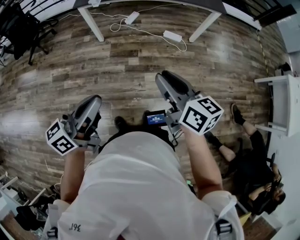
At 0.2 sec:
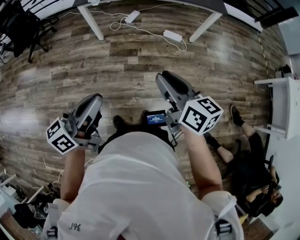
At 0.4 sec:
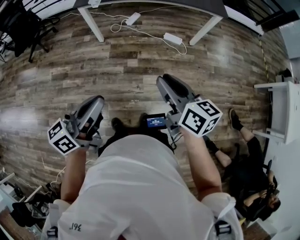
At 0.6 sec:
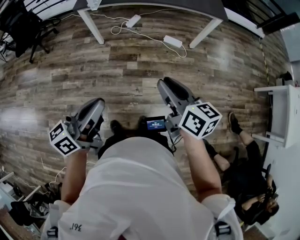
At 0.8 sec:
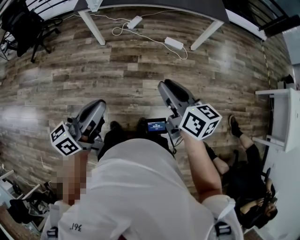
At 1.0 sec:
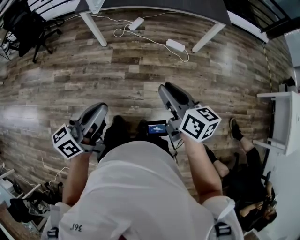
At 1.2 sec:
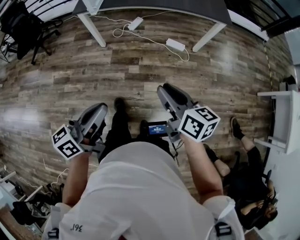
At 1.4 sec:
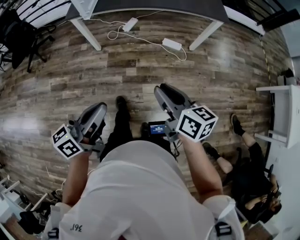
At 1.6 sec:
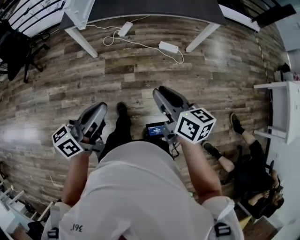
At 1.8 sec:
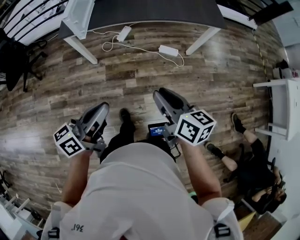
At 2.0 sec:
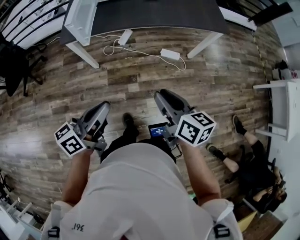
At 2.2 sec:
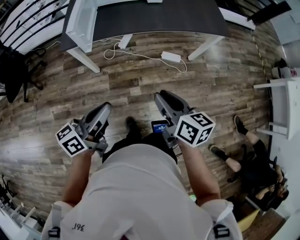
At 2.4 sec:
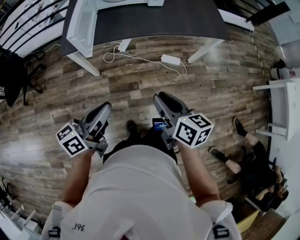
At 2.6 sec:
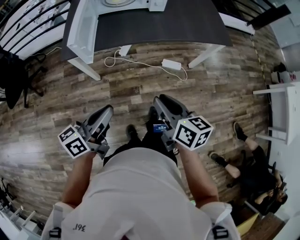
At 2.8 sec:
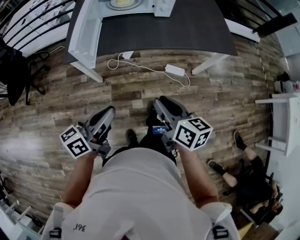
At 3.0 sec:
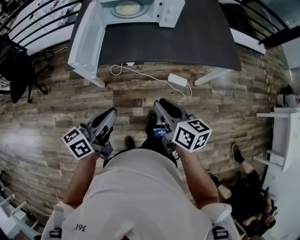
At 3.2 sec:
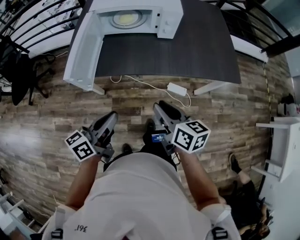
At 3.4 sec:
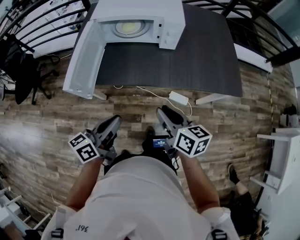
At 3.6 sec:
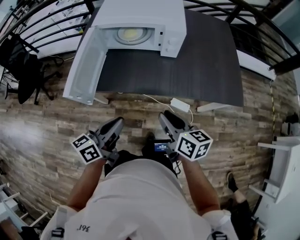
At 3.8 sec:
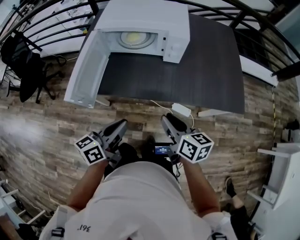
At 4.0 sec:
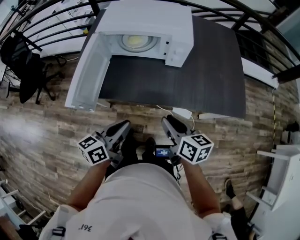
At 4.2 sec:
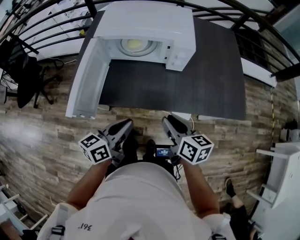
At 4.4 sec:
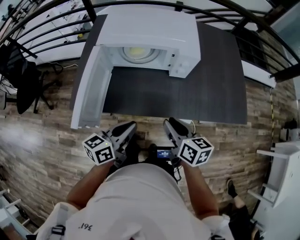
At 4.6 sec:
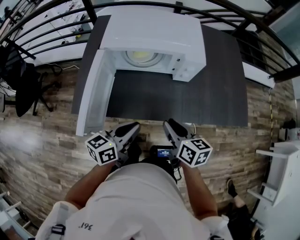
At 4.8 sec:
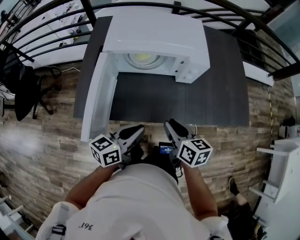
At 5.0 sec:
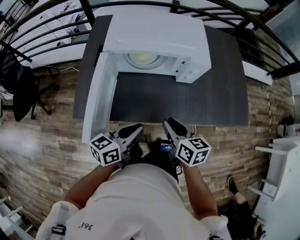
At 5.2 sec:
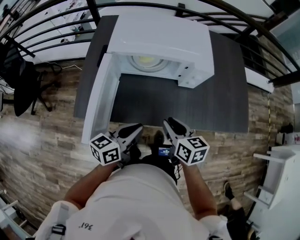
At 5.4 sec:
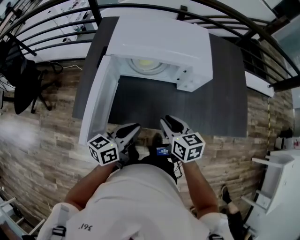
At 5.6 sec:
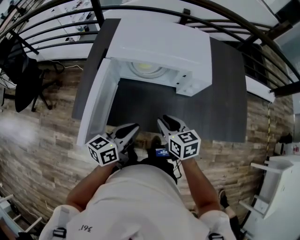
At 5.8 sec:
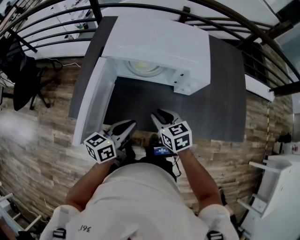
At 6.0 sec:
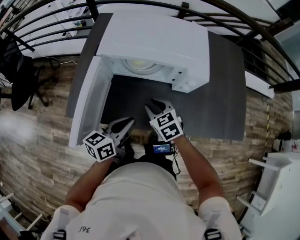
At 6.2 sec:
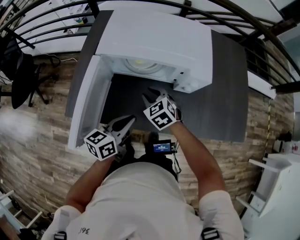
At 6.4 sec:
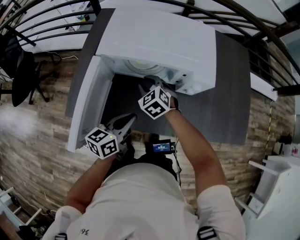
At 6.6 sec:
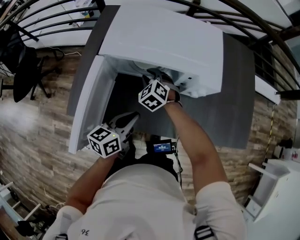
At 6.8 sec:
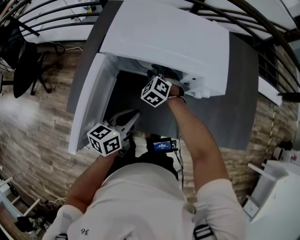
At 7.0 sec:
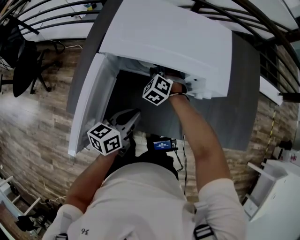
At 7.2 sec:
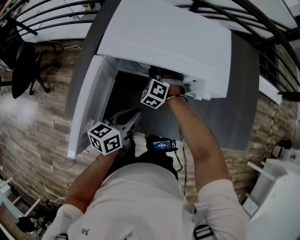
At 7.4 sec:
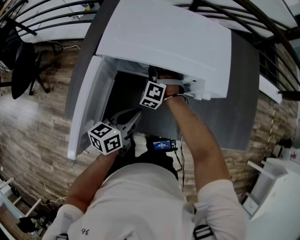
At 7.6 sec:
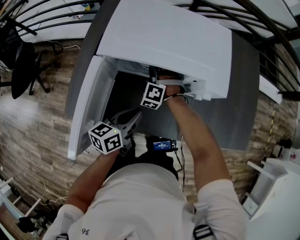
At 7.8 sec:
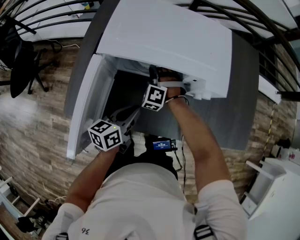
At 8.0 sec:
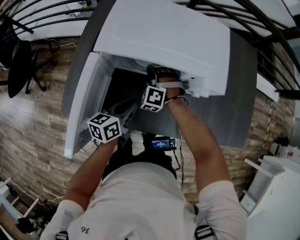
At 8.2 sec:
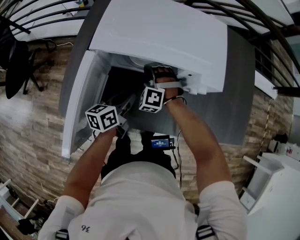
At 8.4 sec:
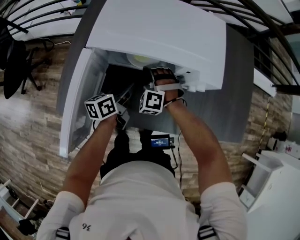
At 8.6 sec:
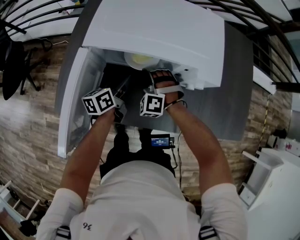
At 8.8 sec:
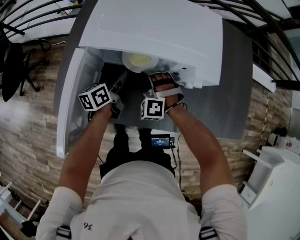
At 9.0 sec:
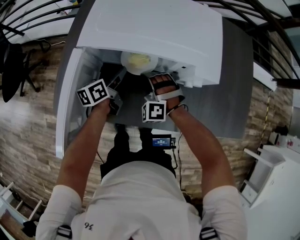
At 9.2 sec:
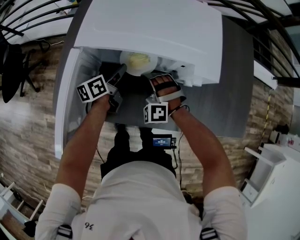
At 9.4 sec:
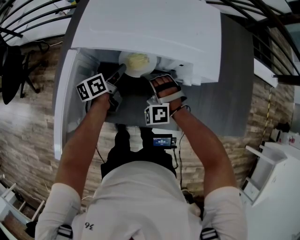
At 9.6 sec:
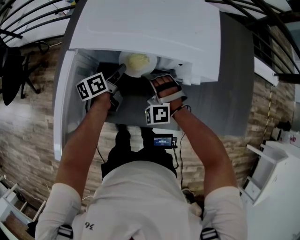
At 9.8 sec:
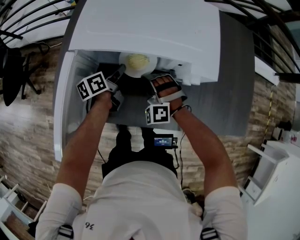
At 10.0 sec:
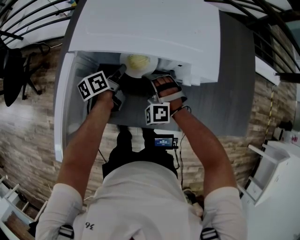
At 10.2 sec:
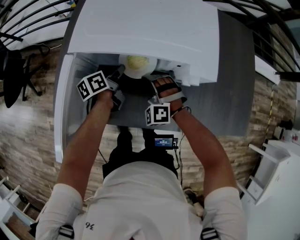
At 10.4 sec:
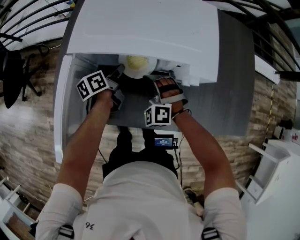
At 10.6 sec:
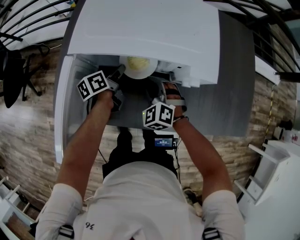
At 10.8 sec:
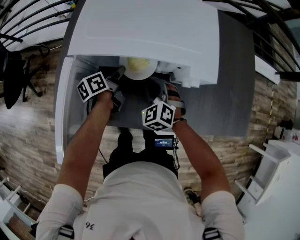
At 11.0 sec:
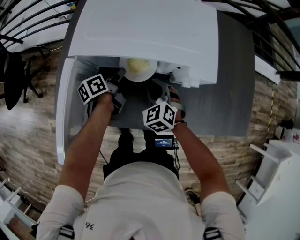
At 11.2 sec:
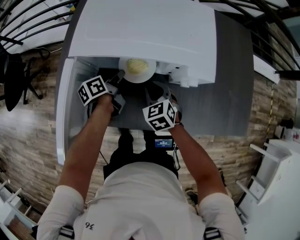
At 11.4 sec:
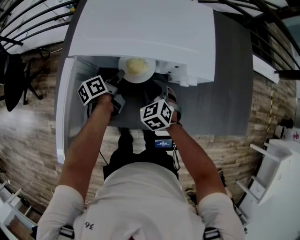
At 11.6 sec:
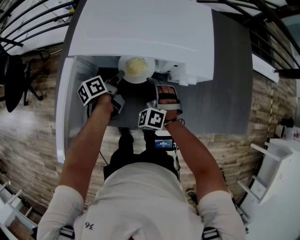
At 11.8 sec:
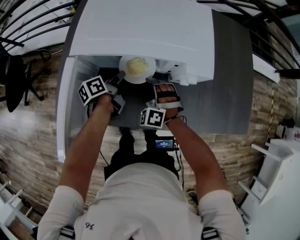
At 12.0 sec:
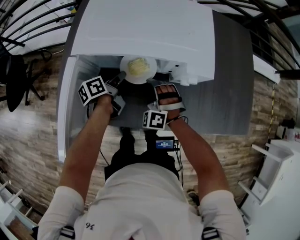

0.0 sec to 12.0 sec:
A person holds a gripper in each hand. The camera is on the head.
0.0 sec to 1.6 sec: Both grippers travel together forward, about 15 cm.
1.6 sec to 3.0 sec: Both grippers move forward, approximately 30 cm.
3.0 sec to 4.4 sec: Both grippers travel together forward, roughly 25 cm.
4.4 sec to 6.0 sec: The right gripper heads forward, to the left and downward, covering some 20 cm, and rolls counterclockwise, seen from behind, by some 40 degrees; the left gripper heads forward, covering approximately 10 cm.
6.0 sec to 7.6 sec: The left gripper is displaced forward by about 10 cm. Meanwhile the right gripper travels forward and to the left by some 20 cm, and twists some 60 degrees counterclockwise, seen from behind.
7.6 sec to 9.0 sec: The right gripper is displaced backward by roughly 10 cm. The left gripper is displaced forward, downward and to the left by roughly 15 cm, and opens its fingers.
9.0 sec to 10.4 sec: The left gripper closes up.
10.4 sec to 12.0 sec: The right gripper opens, then closes again.

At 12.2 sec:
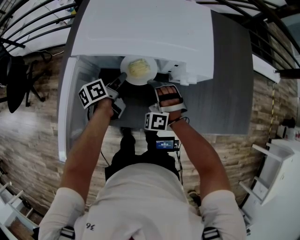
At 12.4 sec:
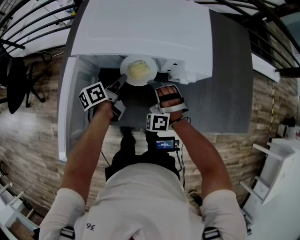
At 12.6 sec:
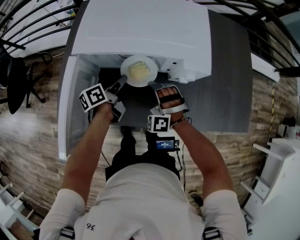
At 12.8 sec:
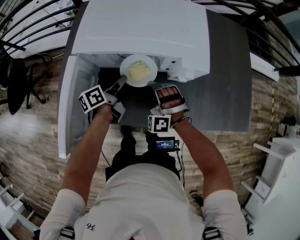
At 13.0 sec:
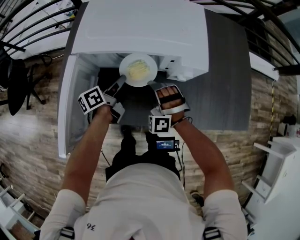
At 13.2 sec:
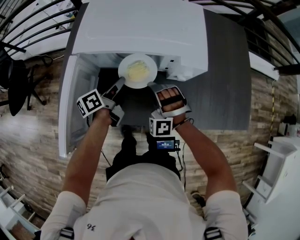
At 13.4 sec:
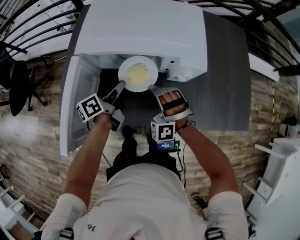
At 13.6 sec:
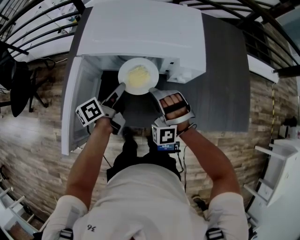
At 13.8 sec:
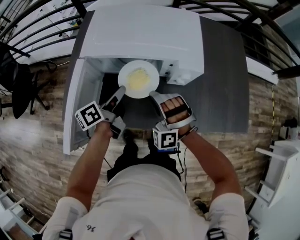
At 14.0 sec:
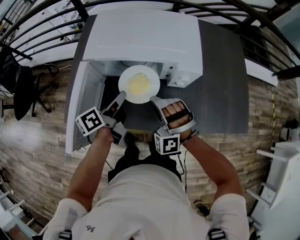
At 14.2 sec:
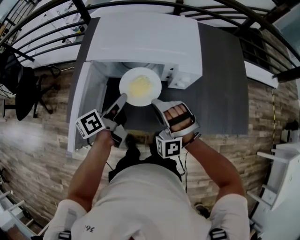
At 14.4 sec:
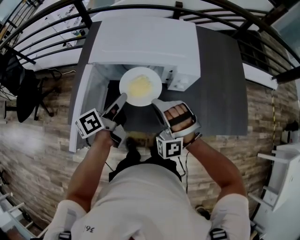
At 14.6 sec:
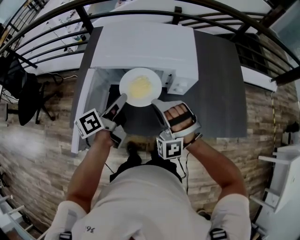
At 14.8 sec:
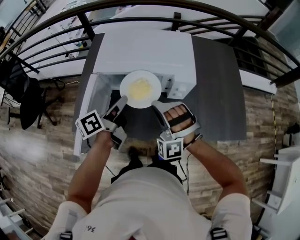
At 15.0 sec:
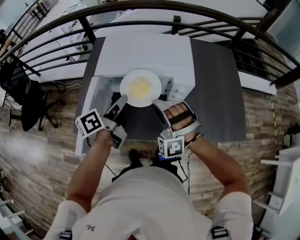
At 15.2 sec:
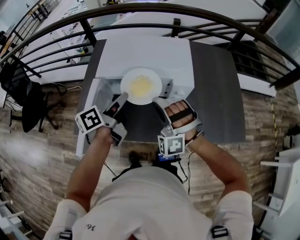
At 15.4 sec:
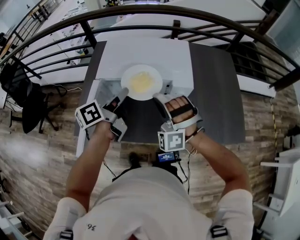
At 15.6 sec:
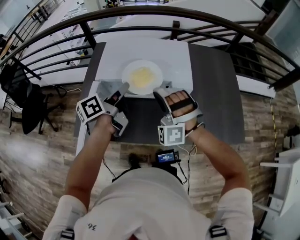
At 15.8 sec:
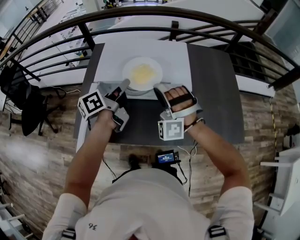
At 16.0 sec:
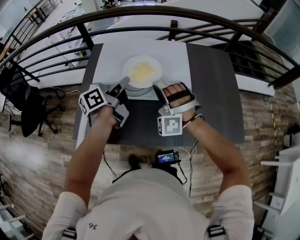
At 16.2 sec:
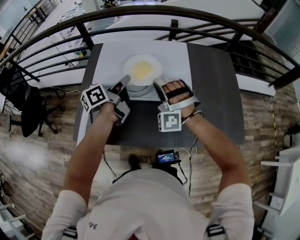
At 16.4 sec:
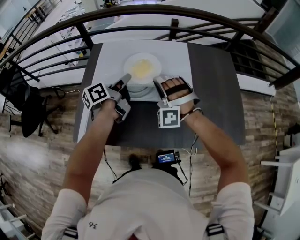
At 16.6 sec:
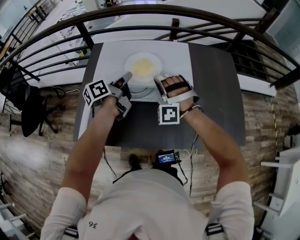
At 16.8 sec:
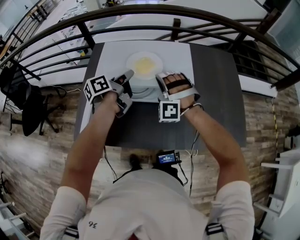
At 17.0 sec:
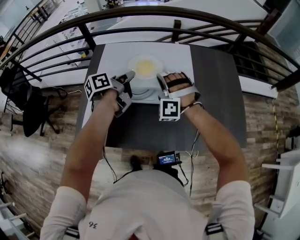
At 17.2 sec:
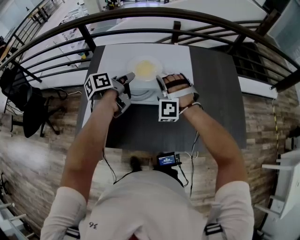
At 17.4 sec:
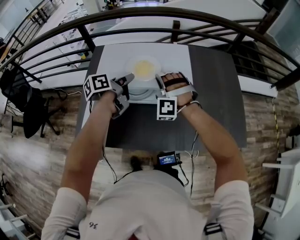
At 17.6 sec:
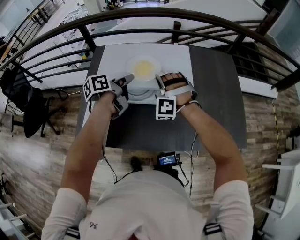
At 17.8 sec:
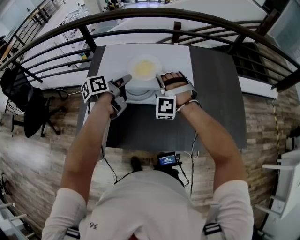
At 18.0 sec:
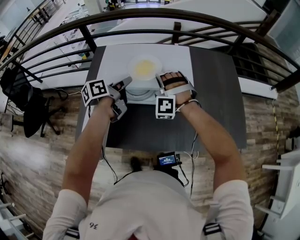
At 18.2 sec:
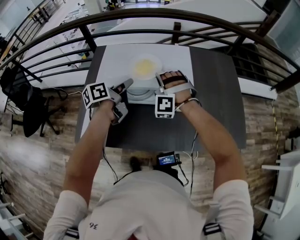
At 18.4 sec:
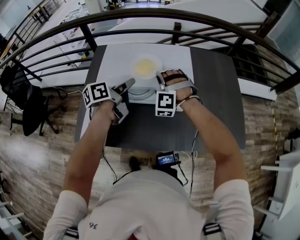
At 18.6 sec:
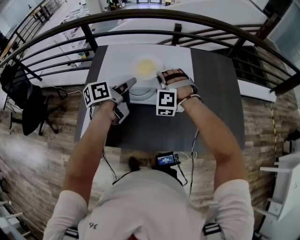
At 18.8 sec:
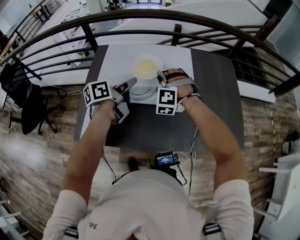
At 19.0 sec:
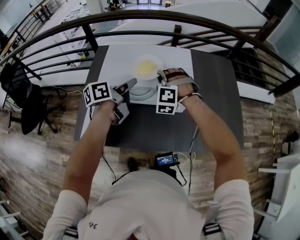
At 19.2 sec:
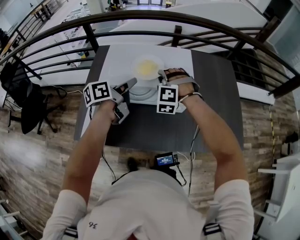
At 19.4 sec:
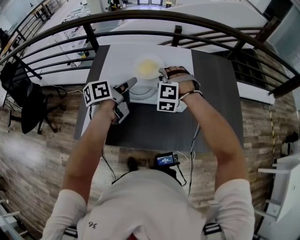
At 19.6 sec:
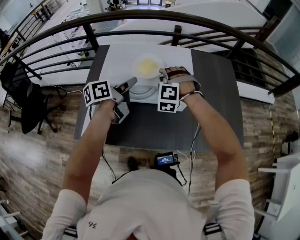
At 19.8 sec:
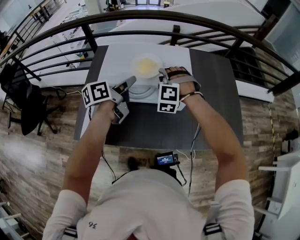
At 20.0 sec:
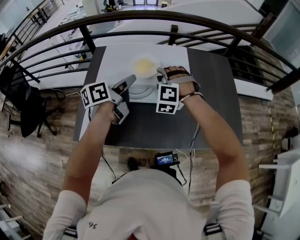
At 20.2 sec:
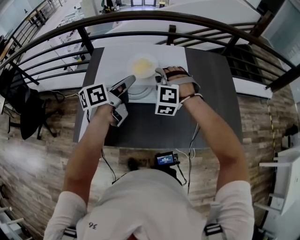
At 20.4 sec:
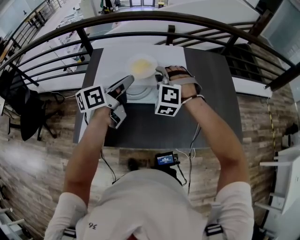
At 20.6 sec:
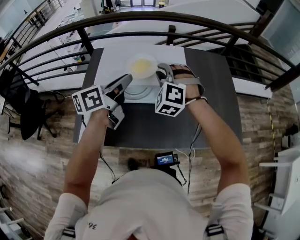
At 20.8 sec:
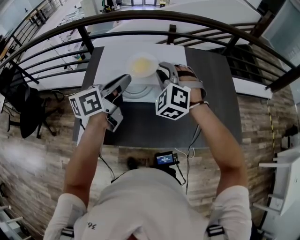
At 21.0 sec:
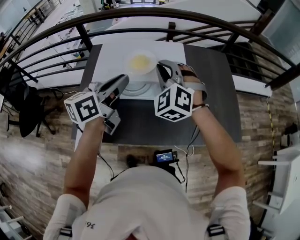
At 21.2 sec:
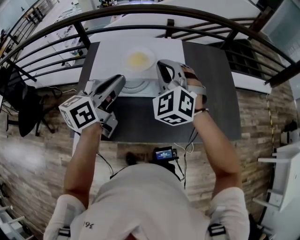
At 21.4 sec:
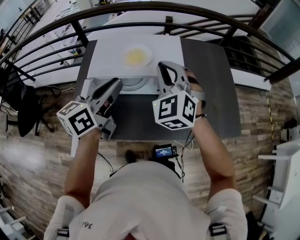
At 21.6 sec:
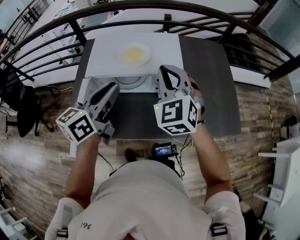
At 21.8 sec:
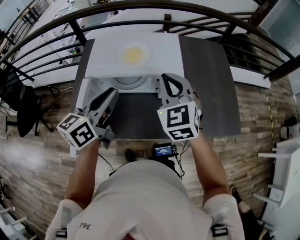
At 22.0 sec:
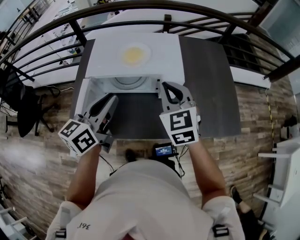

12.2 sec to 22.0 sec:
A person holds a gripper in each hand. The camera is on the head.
12.2 sec to 13.6 sec: The two grippers go roughly 10 cm upward and backward.
13.6 sec to 15.0 sec: The grippers both shift upward by some 15 cm.
15.0 sec to 16.4 sec: Both grippers travel together forward, roughly 15 cm.
16.4 sec to 17.8 sec: The right gripper shifts approximately 5 cm forward.
17.8 sec to 19.2 sec: There are only small adjustments of the grippers.
19.2 sec to 20.6 sec: The grippers both shift upward by roughly 10 cm.
20.6 sec to 22.0 sec: The left gripper moves backward, about 10 cm, while the right gripper heads backward and to the right, covering approximately 10 cm, rotates around the line of its fingers by roughly 50 degrees, clockwise from behind, and closes.

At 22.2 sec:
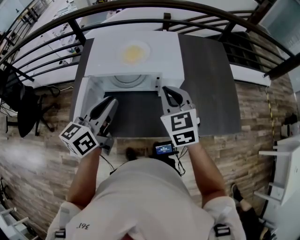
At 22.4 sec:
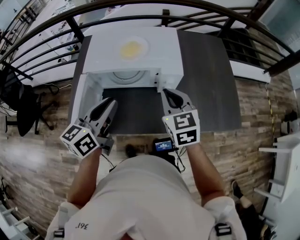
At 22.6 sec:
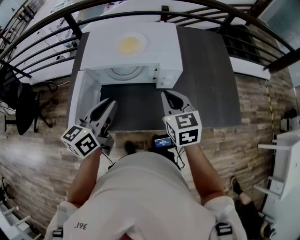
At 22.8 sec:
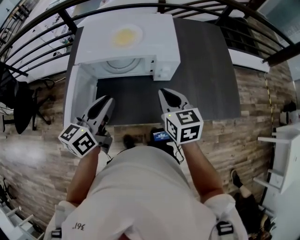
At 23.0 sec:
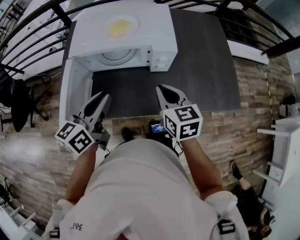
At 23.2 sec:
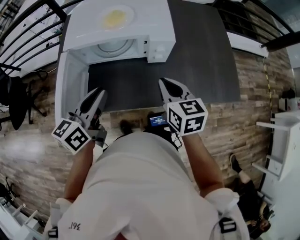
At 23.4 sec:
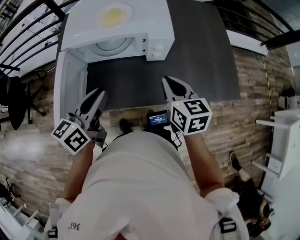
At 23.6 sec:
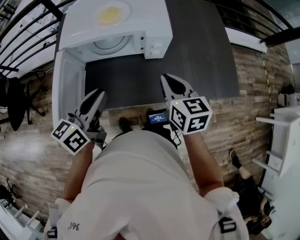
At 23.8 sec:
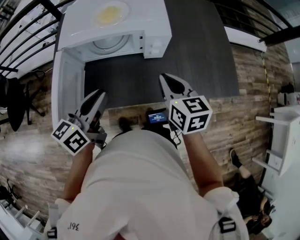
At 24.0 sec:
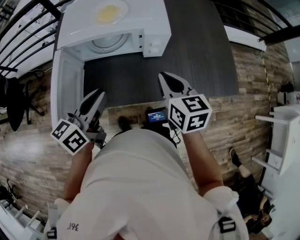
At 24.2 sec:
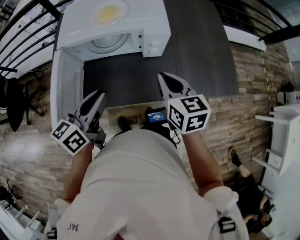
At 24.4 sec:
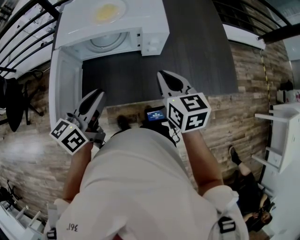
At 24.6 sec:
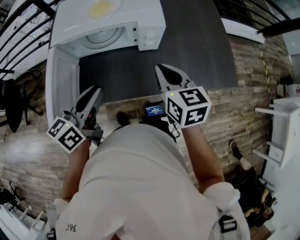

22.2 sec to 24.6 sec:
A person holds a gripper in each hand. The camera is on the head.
22.2 sec to 23.4 sec: The left gripper travels downward by about 5 cm. Meanwhile the right gripper goes approximately 10 cm downward, to the right and backward, and swivels about 30 degrees.
23.4 sec to 24.6 sec: The grippers make only small movements.
